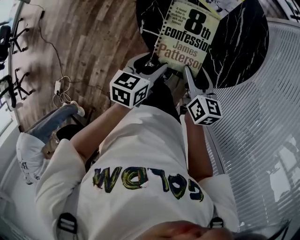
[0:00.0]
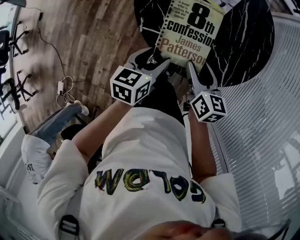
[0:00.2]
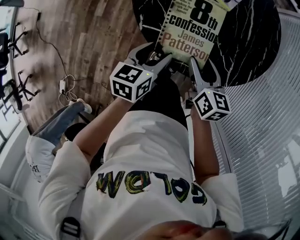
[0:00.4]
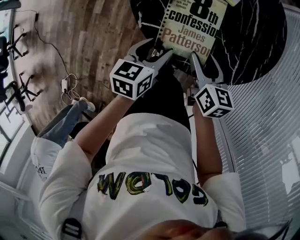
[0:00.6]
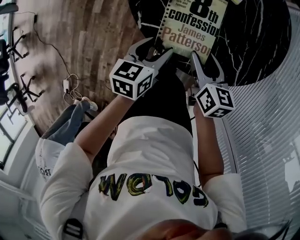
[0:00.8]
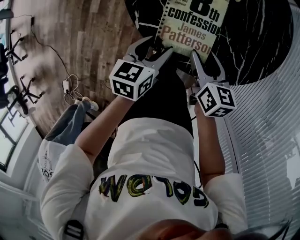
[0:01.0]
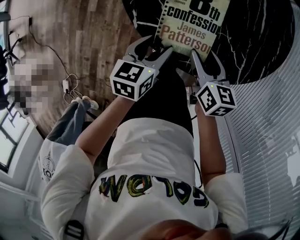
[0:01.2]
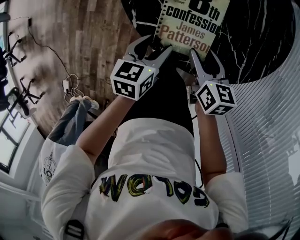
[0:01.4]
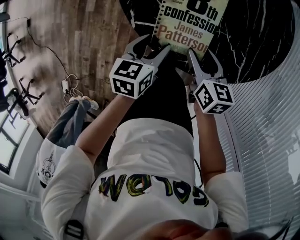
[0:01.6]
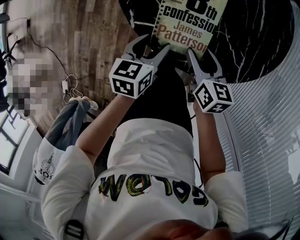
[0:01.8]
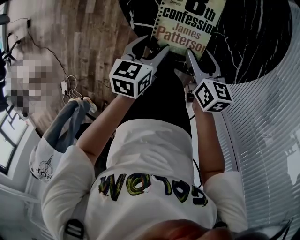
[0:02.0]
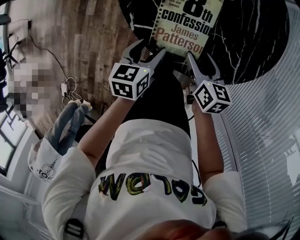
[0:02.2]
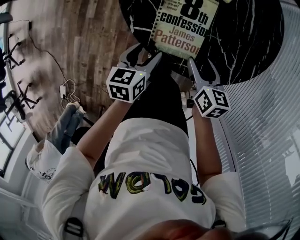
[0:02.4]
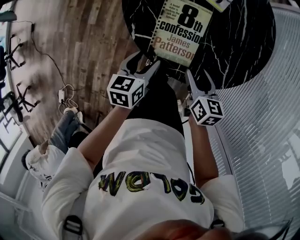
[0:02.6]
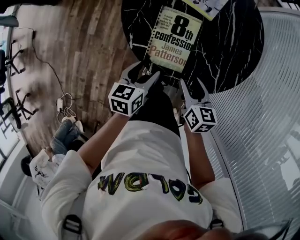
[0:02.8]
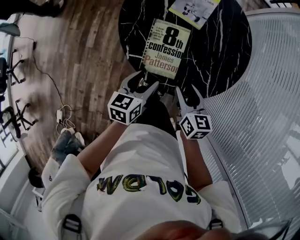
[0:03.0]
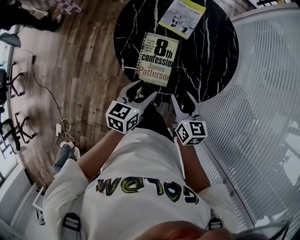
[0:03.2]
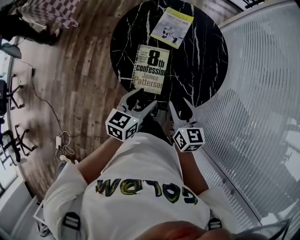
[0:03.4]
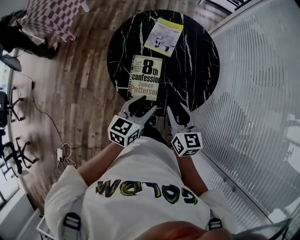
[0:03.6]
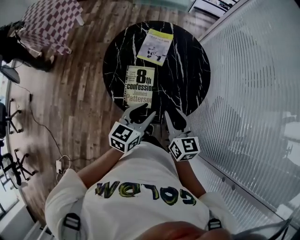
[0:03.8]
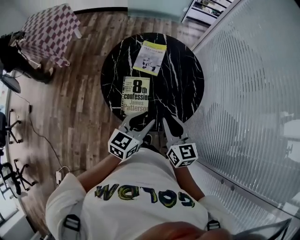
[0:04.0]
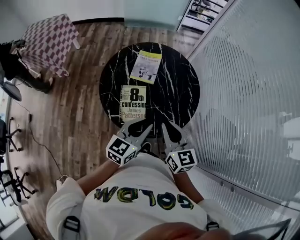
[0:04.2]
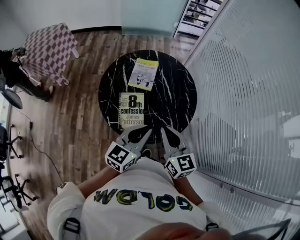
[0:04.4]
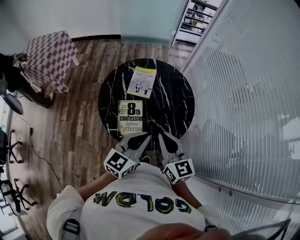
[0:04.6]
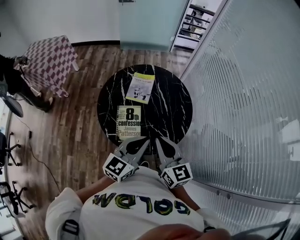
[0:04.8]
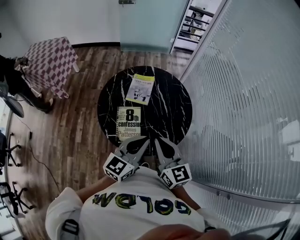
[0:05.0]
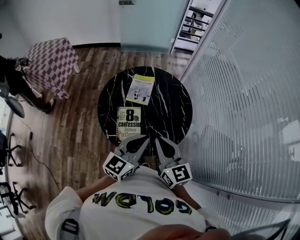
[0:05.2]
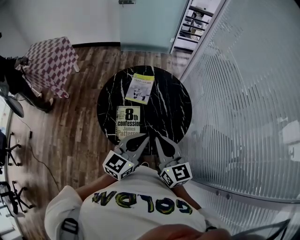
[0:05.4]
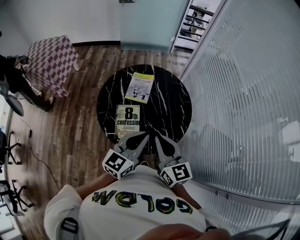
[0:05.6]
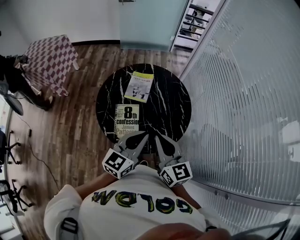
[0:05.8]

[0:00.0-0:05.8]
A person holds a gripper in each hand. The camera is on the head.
0:01.4 to 0:02.8: The two grippers go roughly 5 cm upward.
0:02.8 to 0:04.4: The left gripper shifts approximately 30 cm upward and to the right, swivels some 50 degrees, and closes up. Meanwhile the right gripper is displaced upward by roughly 25 cm, swivels roughly 30 degrees, and closes its fingers.
0:04.4 to 0:05.8: The grippers make only small movements.

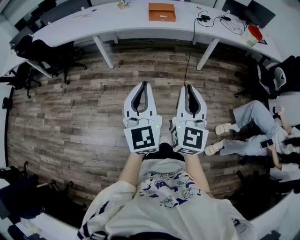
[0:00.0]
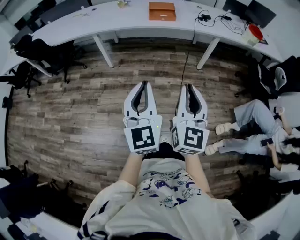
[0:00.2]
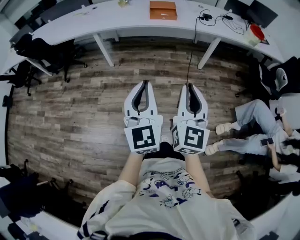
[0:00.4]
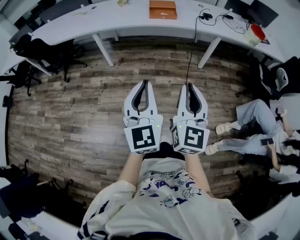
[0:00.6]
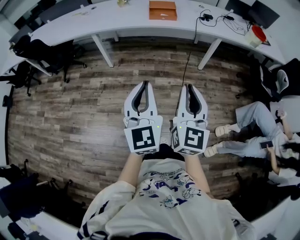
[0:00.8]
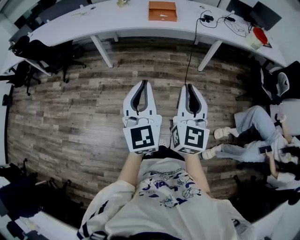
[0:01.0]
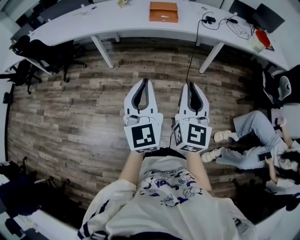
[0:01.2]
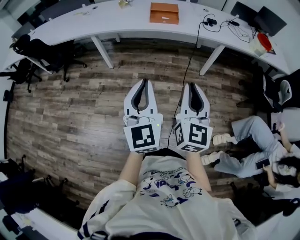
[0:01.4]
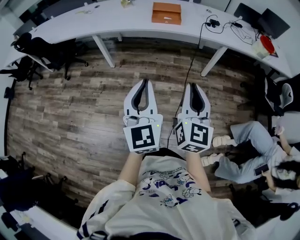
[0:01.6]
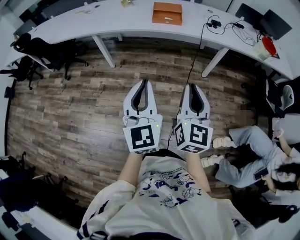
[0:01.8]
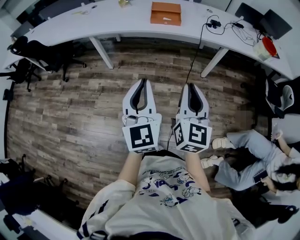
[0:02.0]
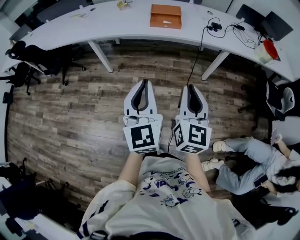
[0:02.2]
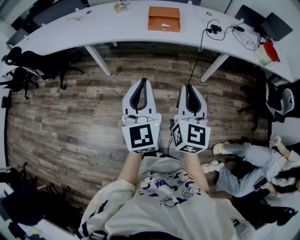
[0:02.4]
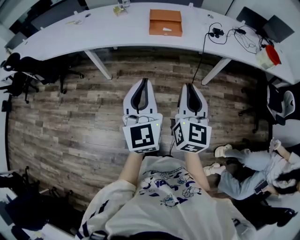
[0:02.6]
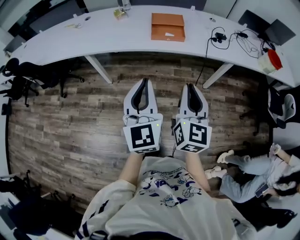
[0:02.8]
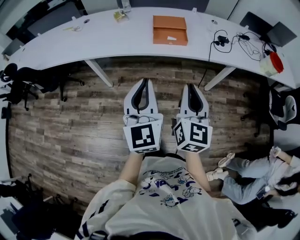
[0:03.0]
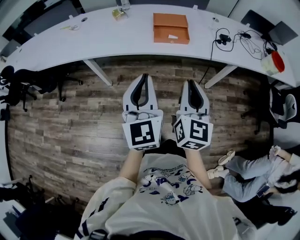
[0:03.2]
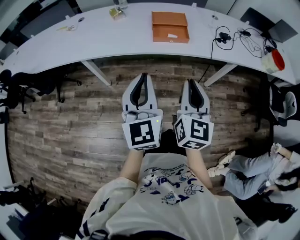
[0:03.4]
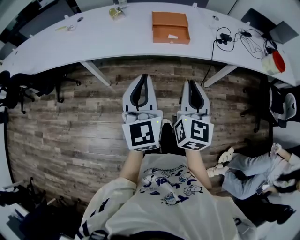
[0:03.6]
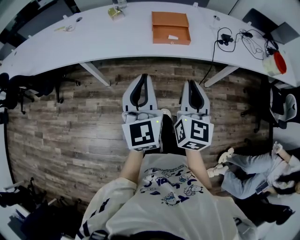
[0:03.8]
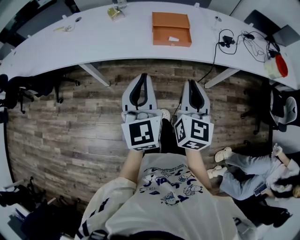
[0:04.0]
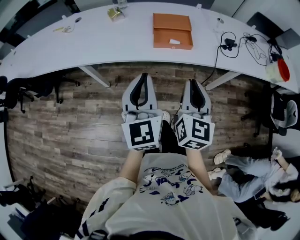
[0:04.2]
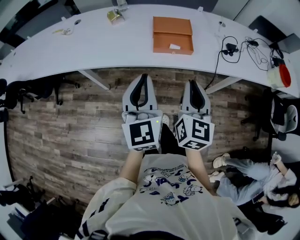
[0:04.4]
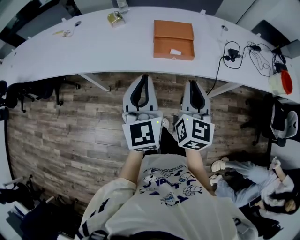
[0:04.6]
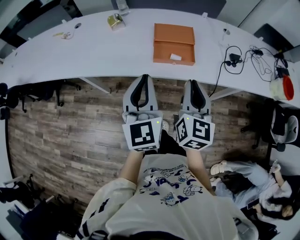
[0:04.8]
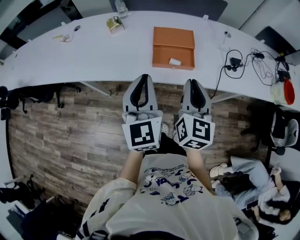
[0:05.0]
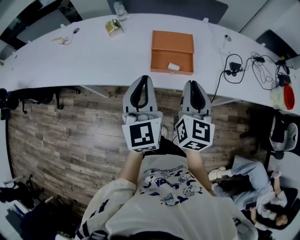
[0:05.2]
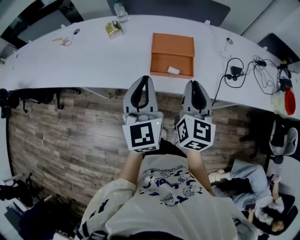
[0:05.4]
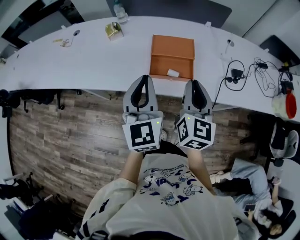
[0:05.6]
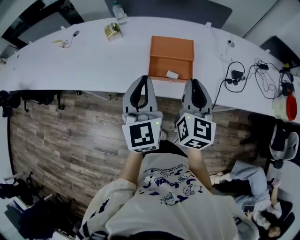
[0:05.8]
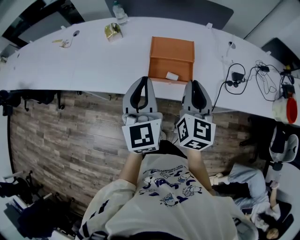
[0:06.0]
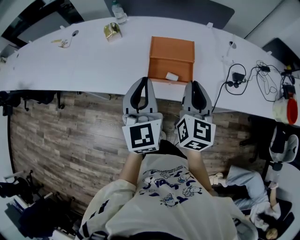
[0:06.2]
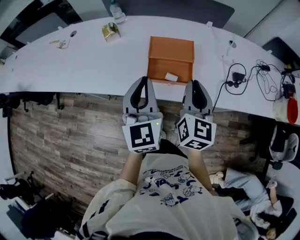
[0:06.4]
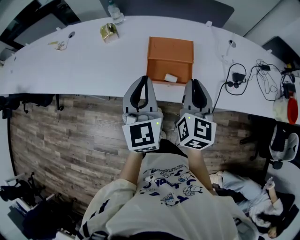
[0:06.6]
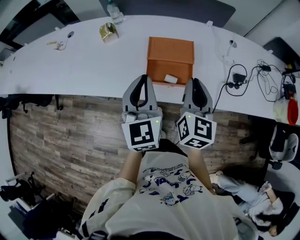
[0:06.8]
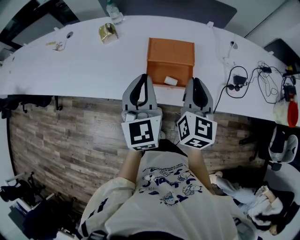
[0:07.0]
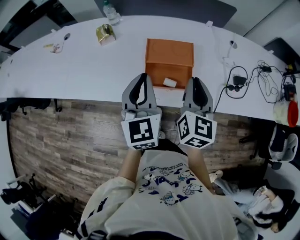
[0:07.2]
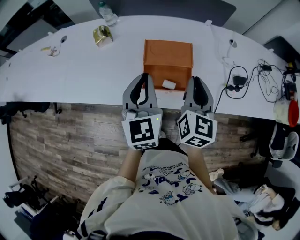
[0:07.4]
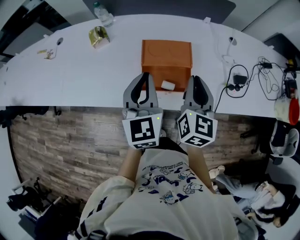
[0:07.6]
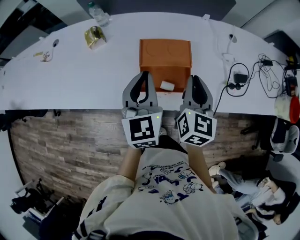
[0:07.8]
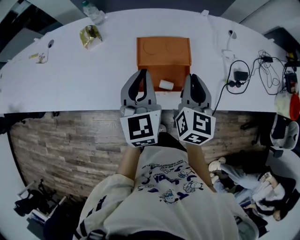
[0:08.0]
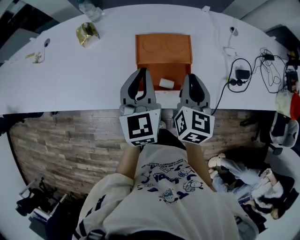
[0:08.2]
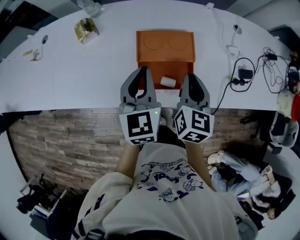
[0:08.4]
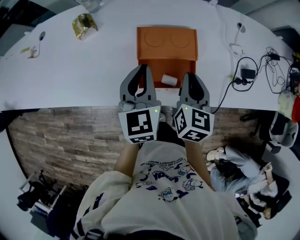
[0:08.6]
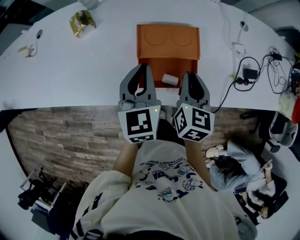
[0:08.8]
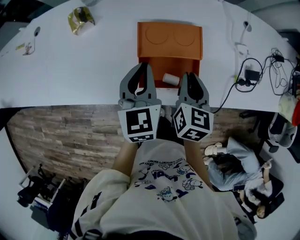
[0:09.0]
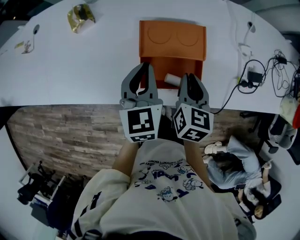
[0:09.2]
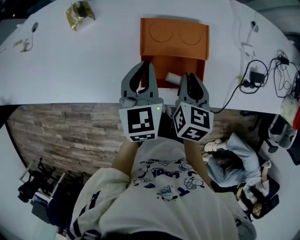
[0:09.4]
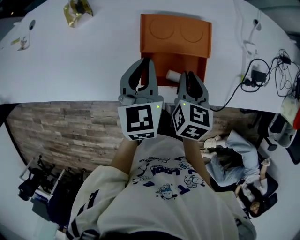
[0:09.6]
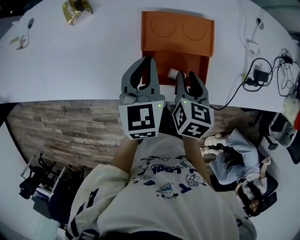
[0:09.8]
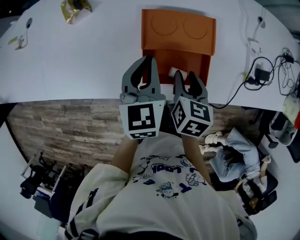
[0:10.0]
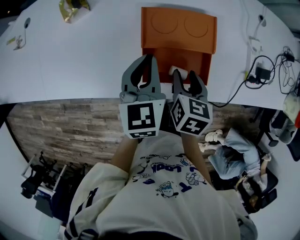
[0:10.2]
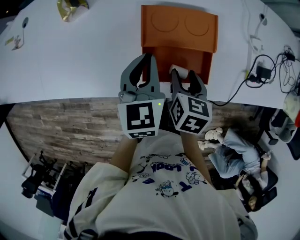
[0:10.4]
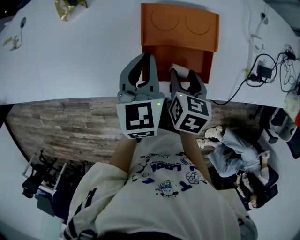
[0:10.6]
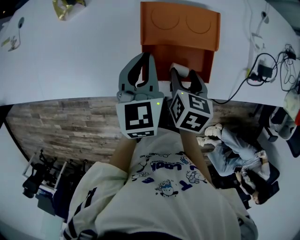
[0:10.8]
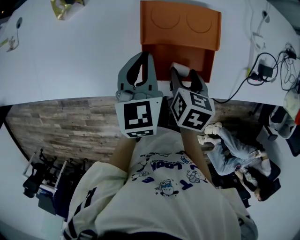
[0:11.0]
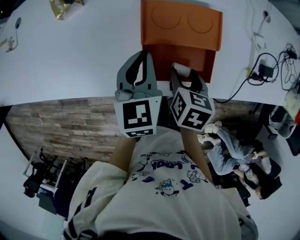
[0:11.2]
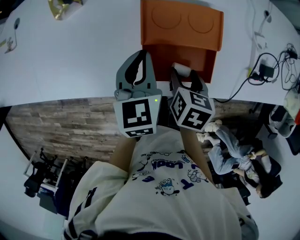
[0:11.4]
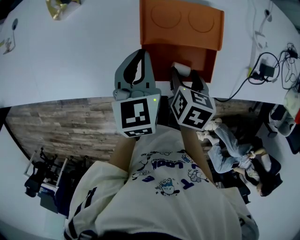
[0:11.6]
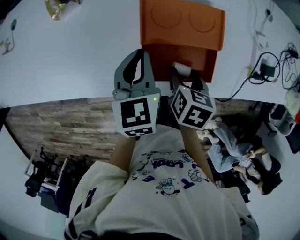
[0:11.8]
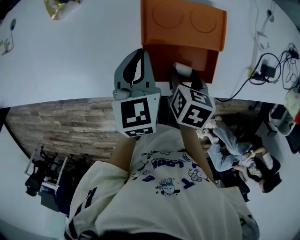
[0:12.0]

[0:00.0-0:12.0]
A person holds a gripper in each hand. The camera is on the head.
0:00.0 to 0:01.6: Both grippers move forward and to the right, roughly 15 cm.
0:01.6 to 0:03.0: Both grippers travel together forward, approximately 30 cm.
0:03.0 to 0:04.4: Both grippers move forward, approximately 15 cm.
0:04.4 to 0:06.0: The grippers both shift forward by about 20 cm.
0:06.0 to 0:07.6: The two grippers go roughly 10 cm forward.
0:07.6 to 0:09.0: The left gripper moves downward and forward, approximately 15 cm. Meanwhile the right gripper moves downward, approximately 10 cm, and turns by some 20 degrees.
0:09.0 to 0:10.4: The left gripper moves downward, roughly 5 cm. The right gripper travels downward by approximately 10 cm, and opens its fingers.
0:10.4 to 0:12.0: The grippers make only small movements.

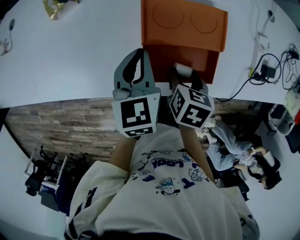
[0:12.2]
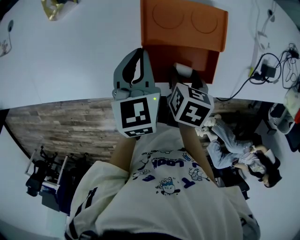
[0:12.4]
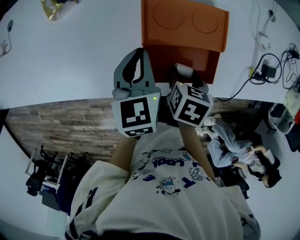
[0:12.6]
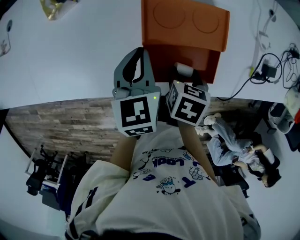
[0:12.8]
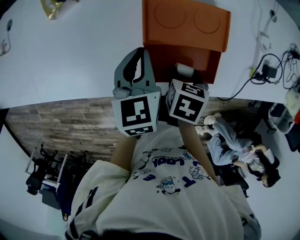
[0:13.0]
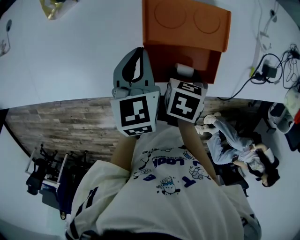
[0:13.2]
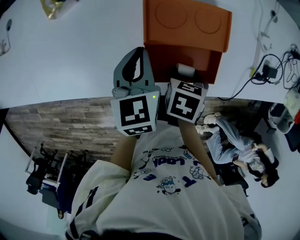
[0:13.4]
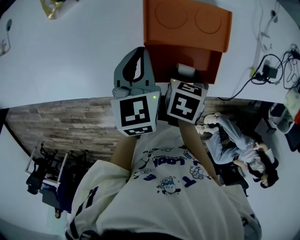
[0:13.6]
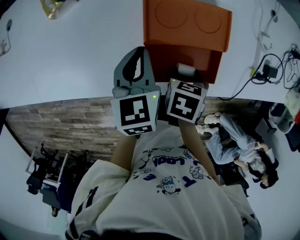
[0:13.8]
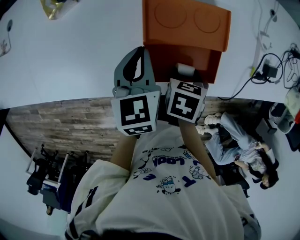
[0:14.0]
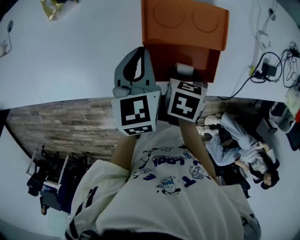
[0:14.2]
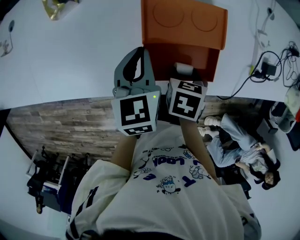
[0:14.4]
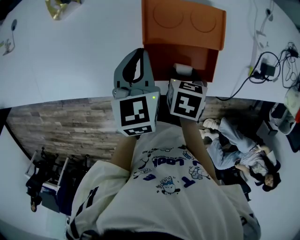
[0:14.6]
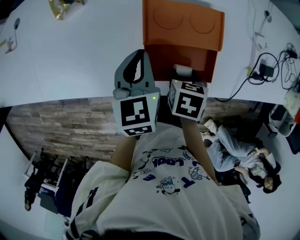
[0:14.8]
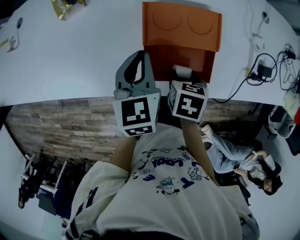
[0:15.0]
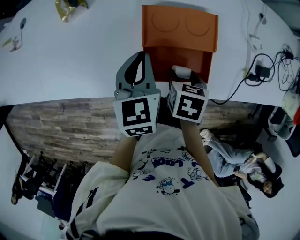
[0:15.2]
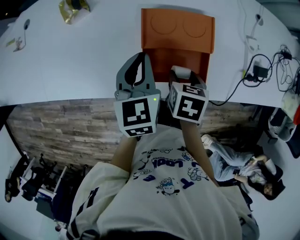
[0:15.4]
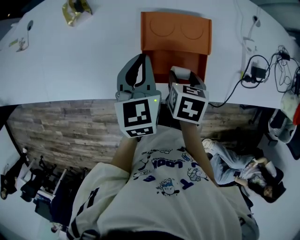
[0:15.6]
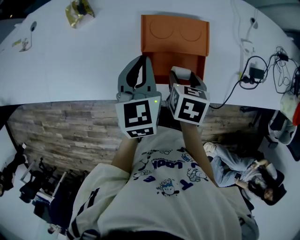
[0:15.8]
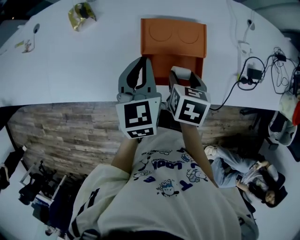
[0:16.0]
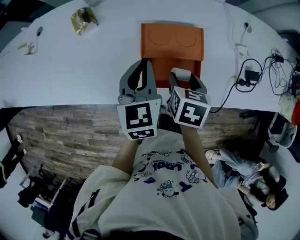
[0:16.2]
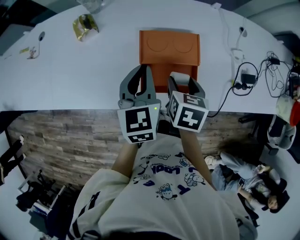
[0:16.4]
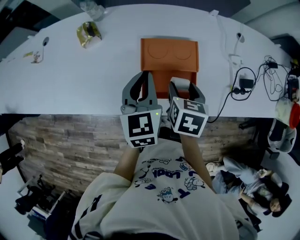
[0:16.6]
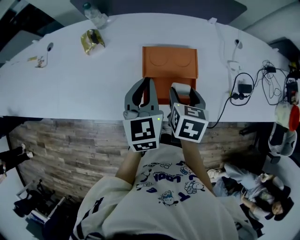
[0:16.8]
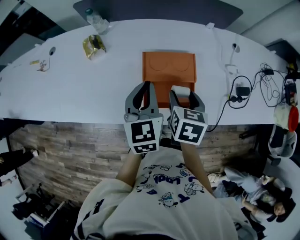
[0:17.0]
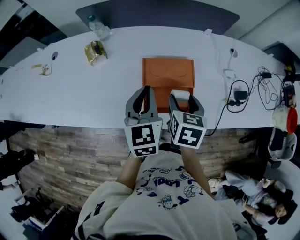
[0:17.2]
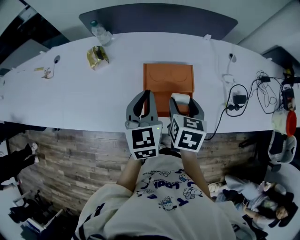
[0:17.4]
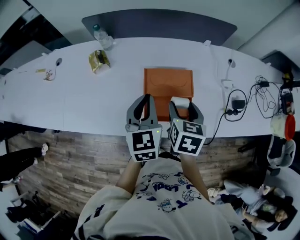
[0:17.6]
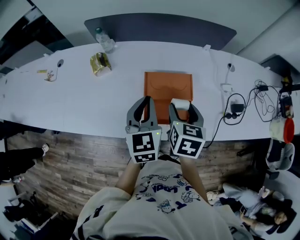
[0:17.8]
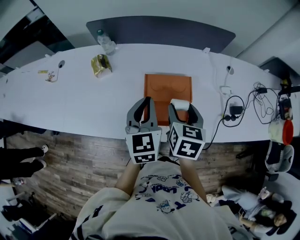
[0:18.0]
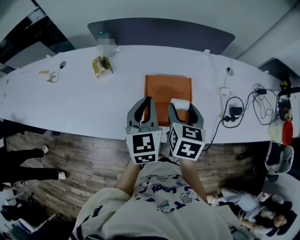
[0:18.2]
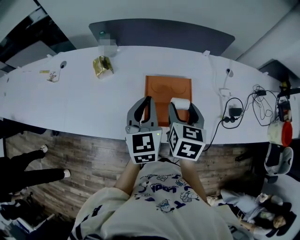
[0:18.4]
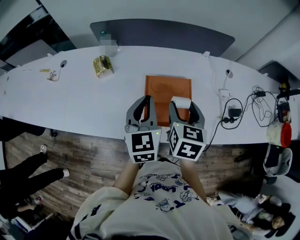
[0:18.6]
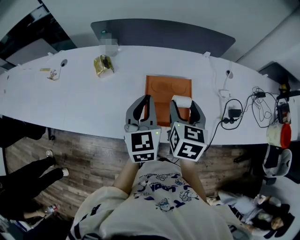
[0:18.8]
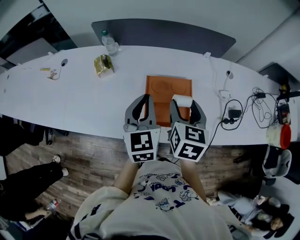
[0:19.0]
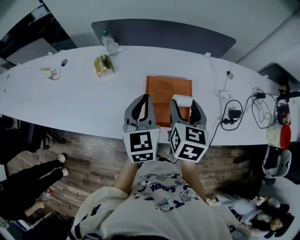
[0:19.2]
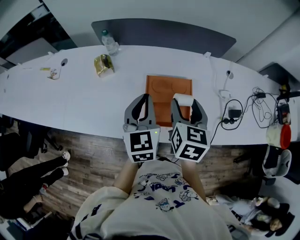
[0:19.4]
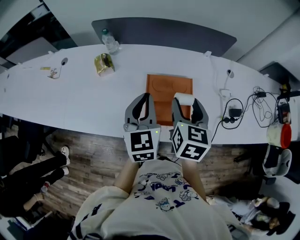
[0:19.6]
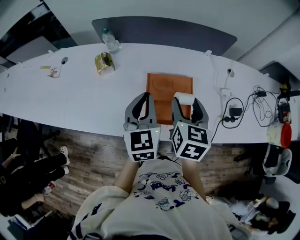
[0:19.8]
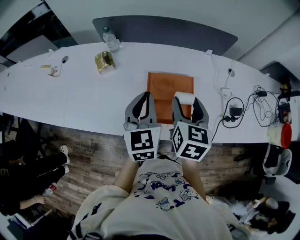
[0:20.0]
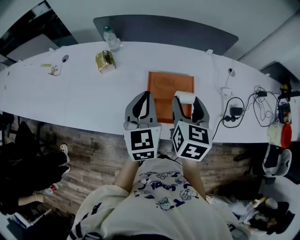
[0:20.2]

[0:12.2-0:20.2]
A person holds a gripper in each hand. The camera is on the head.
0:12.2 to 0:13.8: The grippers stay close to where they were, moving slightly.
0:13.8 to 0:15.4: The two grippers go about 5 cm upward.
0:15.4 to 0:17.0: The two grippers go roughly 10 cm upward. The right gripper changes its angle by about 20 degrees.
0:17.0 to 0:18.6: The left gripper is displaced upward by some 5 cm, while the right gripper is displaced upward by roughly 10 cm.
0:18.6 to 0:20.2: The grippers make only small movements.
